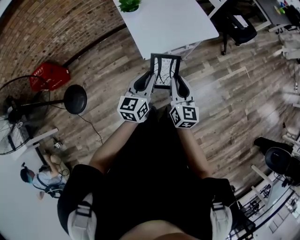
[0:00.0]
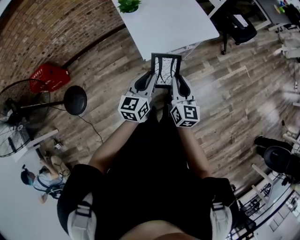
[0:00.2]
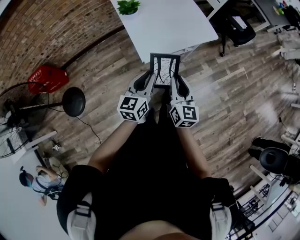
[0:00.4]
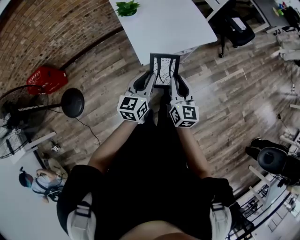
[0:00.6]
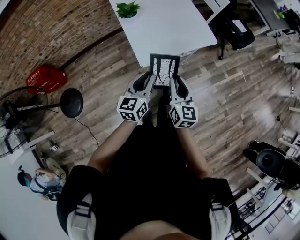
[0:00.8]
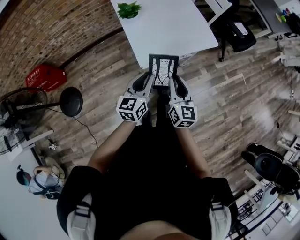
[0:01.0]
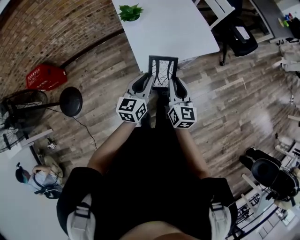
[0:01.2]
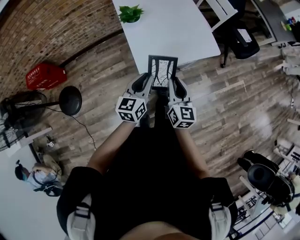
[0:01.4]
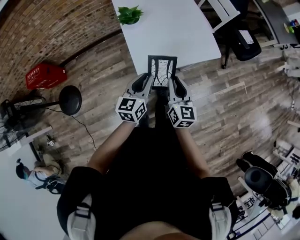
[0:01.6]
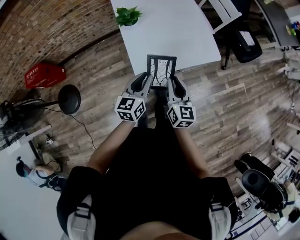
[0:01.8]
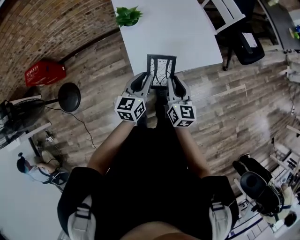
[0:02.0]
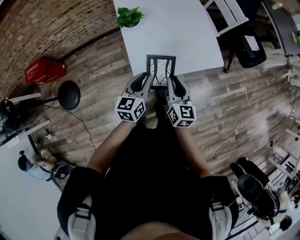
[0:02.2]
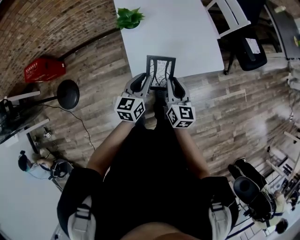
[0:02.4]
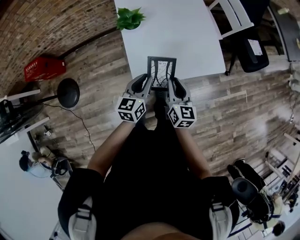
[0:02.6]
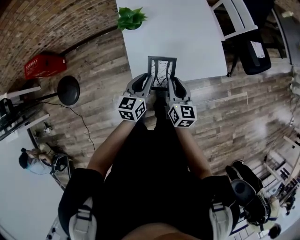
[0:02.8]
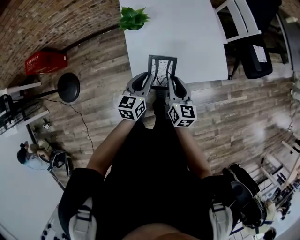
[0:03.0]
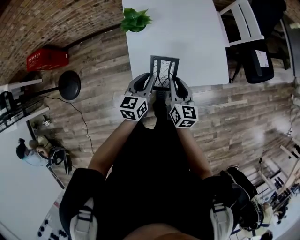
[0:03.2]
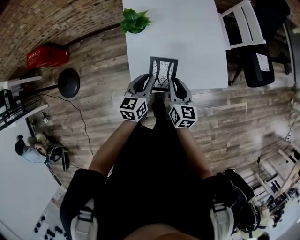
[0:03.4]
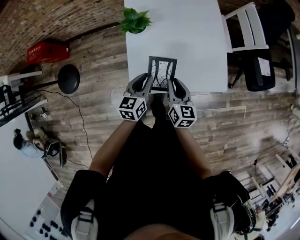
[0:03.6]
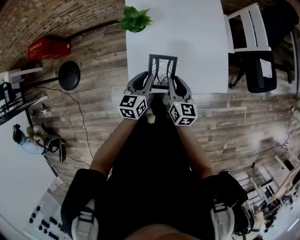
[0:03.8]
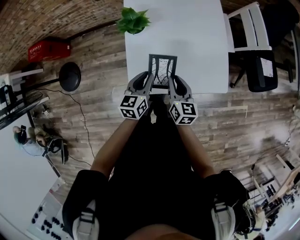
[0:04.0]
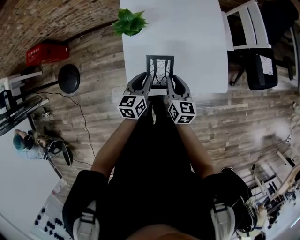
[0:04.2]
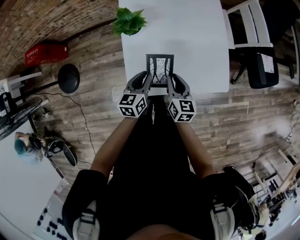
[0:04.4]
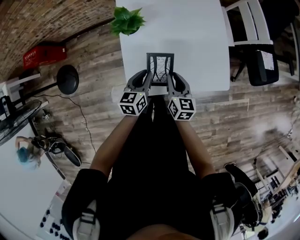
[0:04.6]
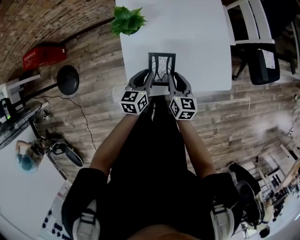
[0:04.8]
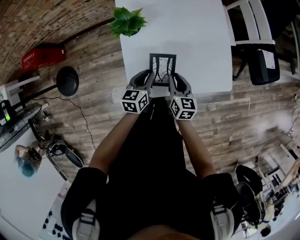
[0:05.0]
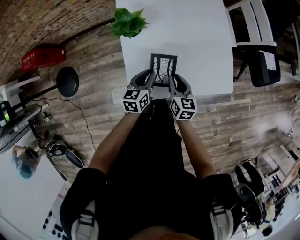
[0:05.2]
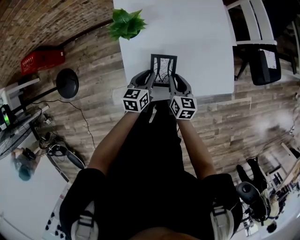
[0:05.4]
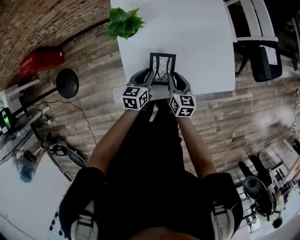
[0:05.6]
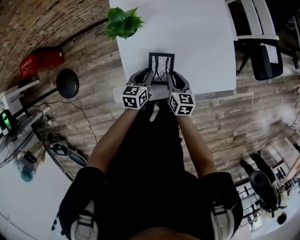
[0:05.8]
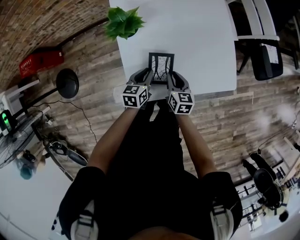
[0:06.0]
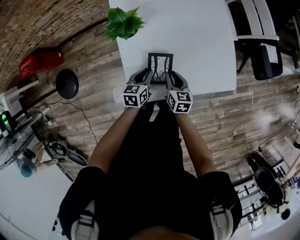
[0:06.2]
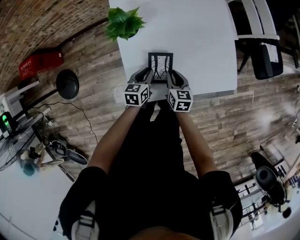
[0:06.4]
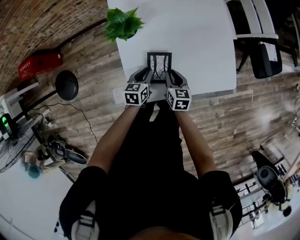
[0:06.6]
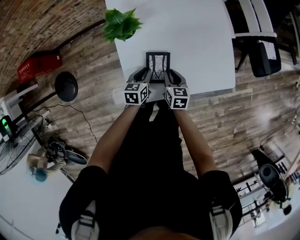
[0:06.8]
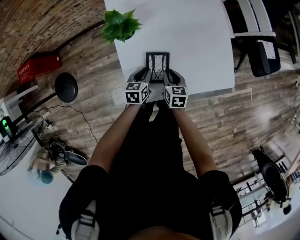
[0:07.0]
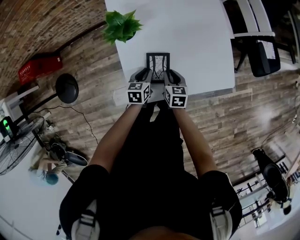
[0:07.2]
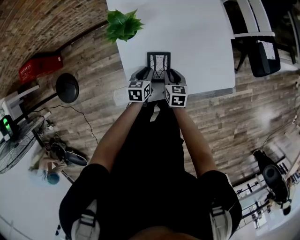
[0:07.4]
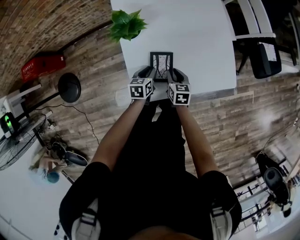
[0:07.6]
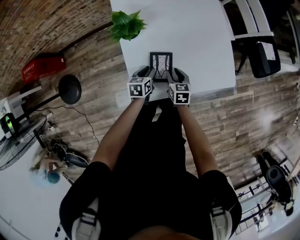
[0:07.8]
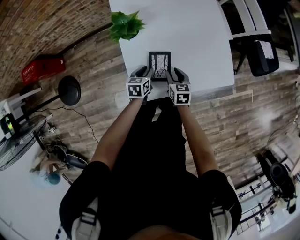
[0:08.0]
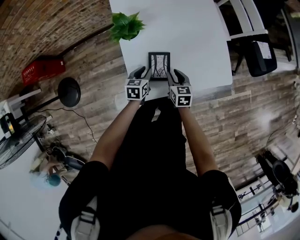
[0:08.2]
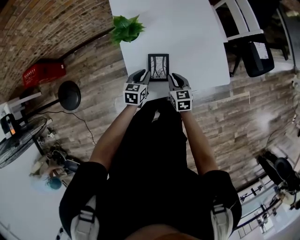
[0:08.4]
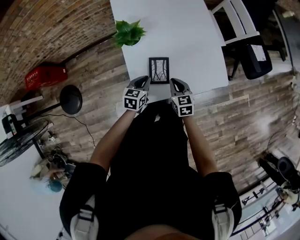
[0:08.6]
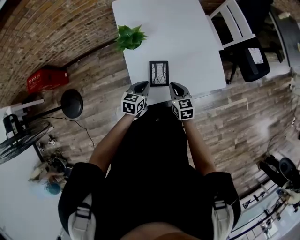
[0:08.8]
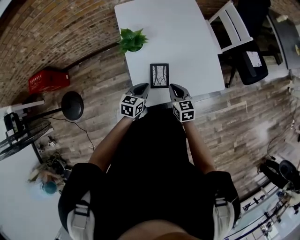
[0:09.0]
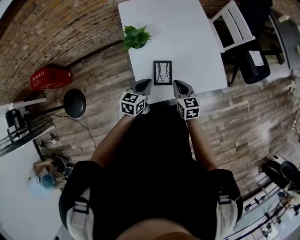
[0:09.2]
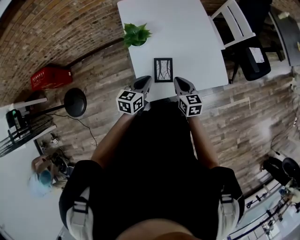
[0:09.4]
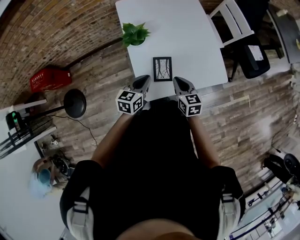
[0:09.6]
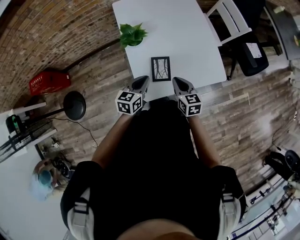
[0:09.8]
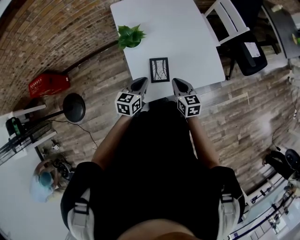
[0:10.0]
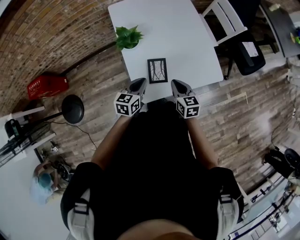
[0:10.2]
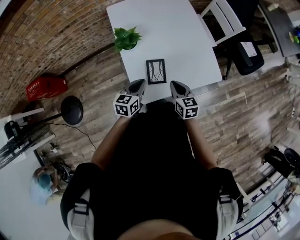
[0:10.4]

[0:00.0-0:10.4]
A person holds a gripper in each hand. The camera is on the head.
0:00.0 to 0:01.4: Both grippers travel together forward, roughly 10 cm.
0:01.4 to 0:03.0: Both grippers move forward and downward, some 20 cm.
0:03.0 to 0:04.4: Both grippers travel together forward and downward, about 10 cm.
0:04.4 to 0:06.0: The two grippers go some 10 cm downward.
0:06.0 to 0:07.4: The grippers stay close to where they were, moving slightly.
0:07.4 to 0:09.0: The two grippers go approximately 15 cm upward and backward.
0:09.0 to 0:10.4: The grippers stay close to where they were, moving slightly.

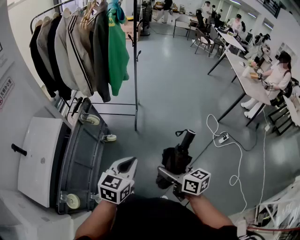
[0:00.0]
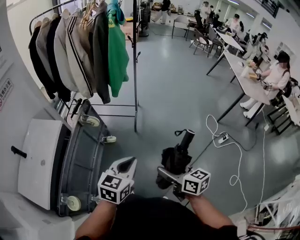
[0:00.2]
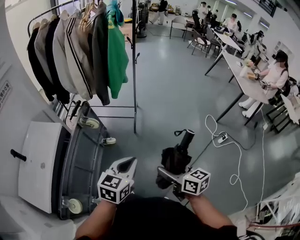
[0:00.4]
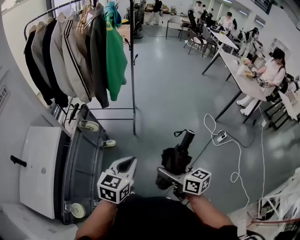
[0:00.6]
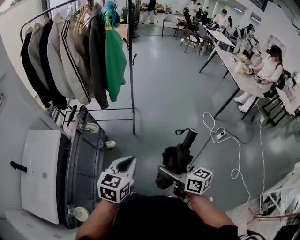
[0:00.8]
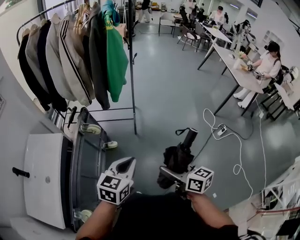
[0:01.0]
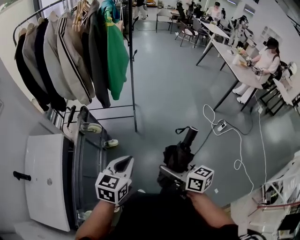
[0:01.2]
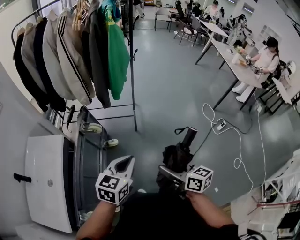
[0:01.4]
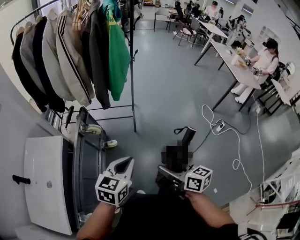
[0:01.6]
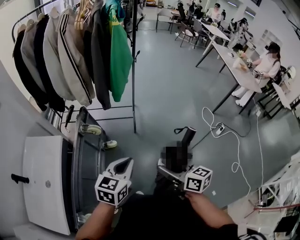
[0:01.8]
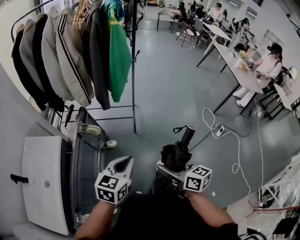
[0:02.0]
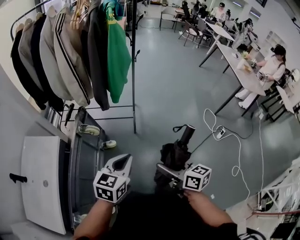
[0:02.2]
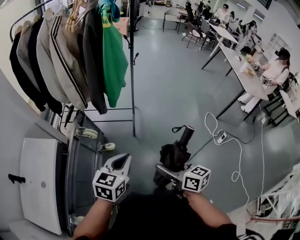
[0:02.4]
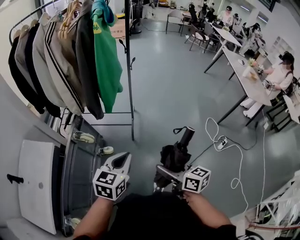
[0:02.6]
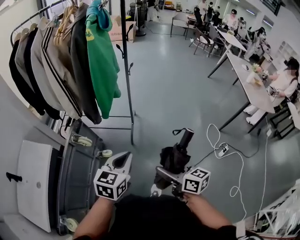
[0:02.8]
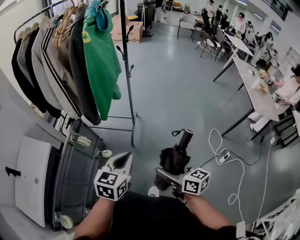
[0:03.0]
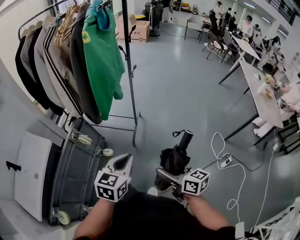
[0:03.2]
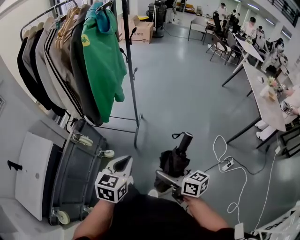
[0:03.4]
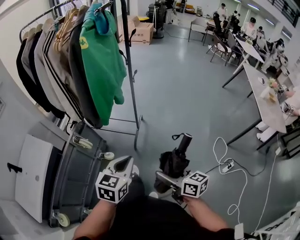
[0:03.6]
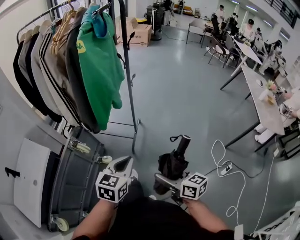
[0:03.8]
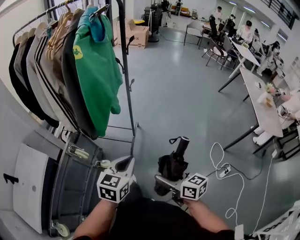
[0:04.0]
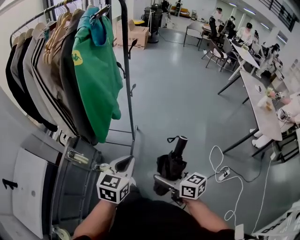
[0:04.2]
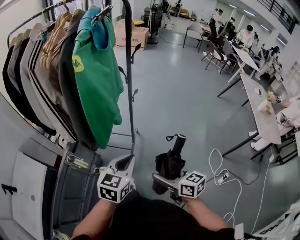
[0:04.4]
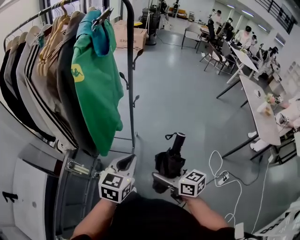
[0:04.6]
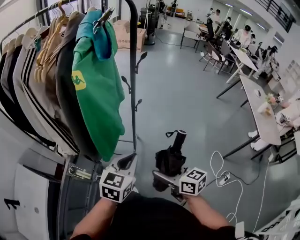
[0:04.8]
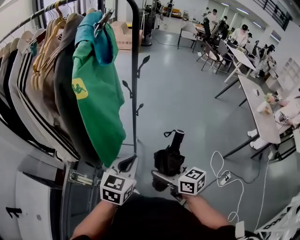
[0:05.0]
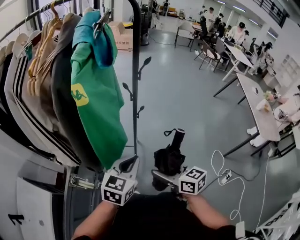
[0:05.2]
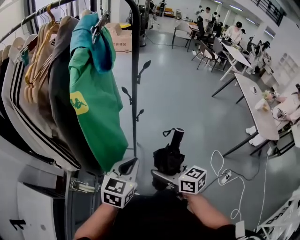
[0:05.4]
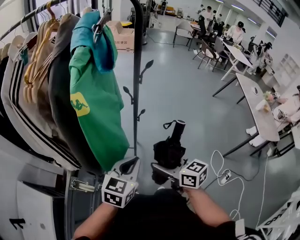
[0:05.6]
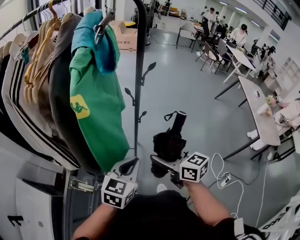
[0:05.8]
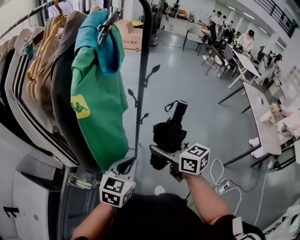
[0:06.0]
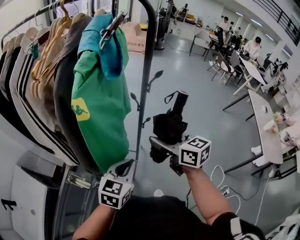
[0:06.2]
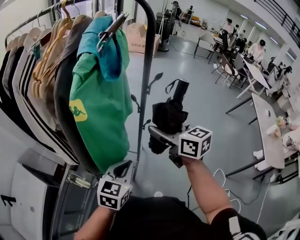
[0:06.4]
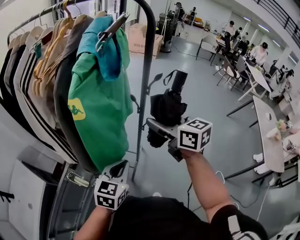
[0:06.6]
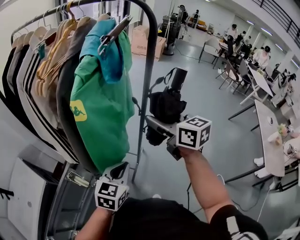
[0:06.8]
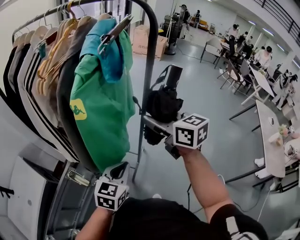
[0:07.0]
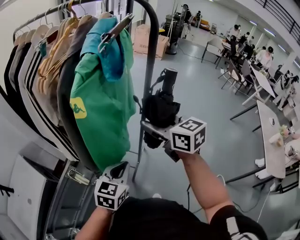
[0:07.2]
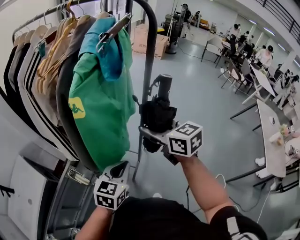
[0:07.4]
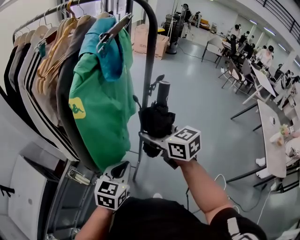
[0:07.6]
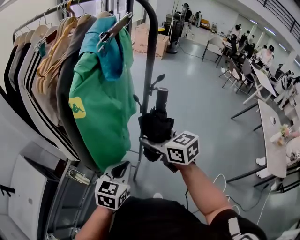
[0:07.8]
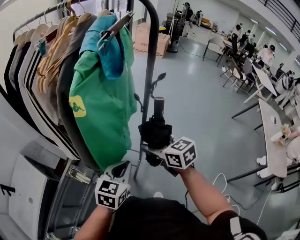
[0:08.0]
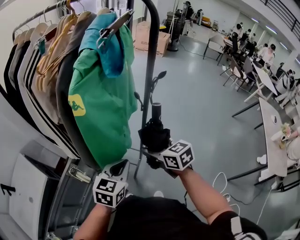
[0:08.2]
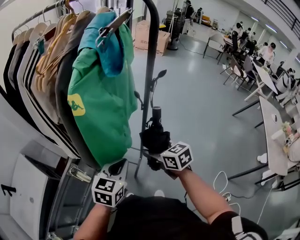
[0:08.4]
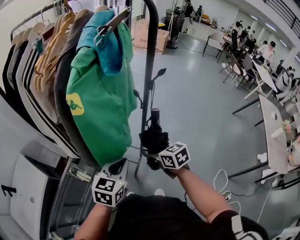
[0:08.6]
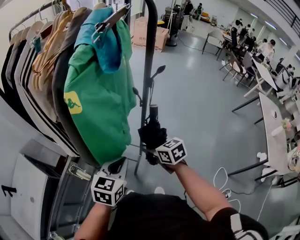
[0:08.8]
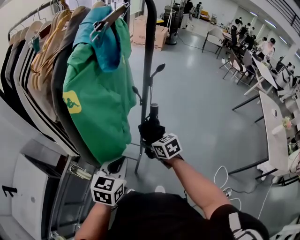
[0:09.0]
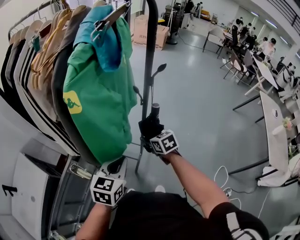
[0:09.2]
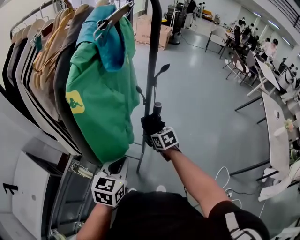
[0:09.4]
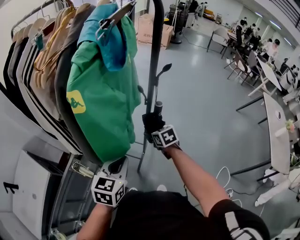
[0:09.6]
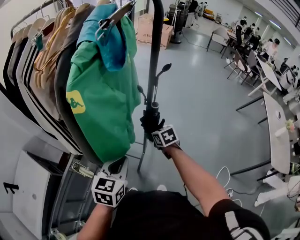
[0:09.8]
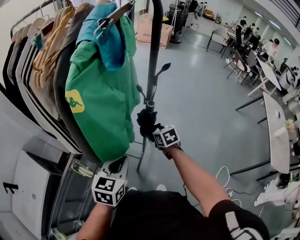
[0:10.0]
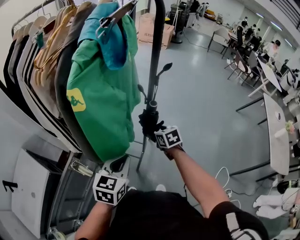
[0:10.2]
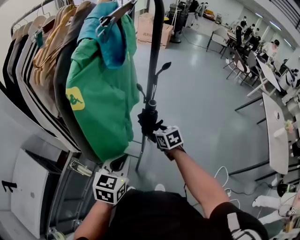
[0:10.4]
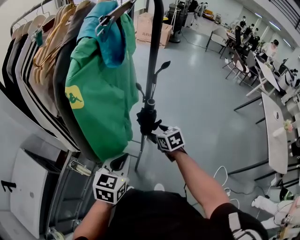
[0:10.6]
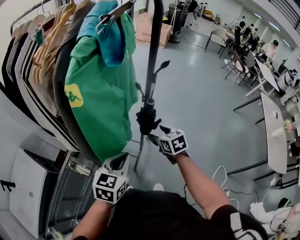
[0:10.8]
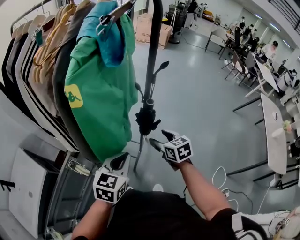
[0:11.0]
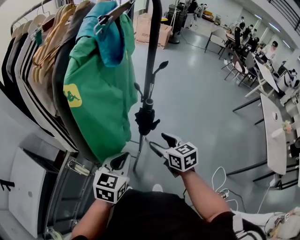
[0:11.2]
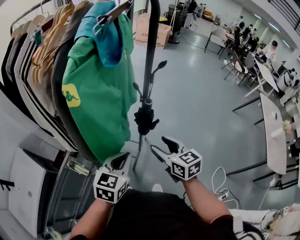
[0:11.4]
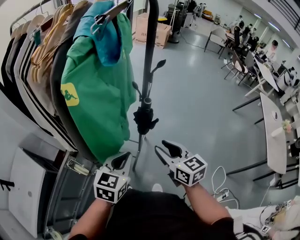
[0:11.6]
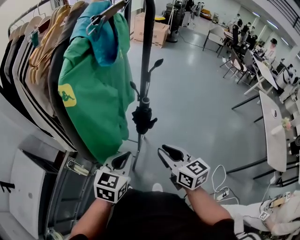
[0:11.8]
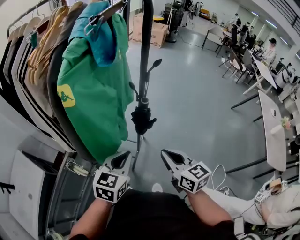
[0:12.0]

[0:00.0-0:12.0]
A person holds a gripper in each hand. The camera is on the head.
0:00.0 to 0:01.6: Both grippers travel together to the left and forward, roughly 15 cm.
0:01.6 to 0:03.0: Both grippers move to the right and forward, approximately 25 cm.
0:03.0 to 0:04.4: The two grippers go some 20 cm forward.
0:04.4 to 0:06.0: The left gripper heads forward, covering some 15 cm. The right gripper is displaced forward by about 25 cm.
0:06.0 to 0:07.6: The right gripper travels forward and upward by about 10 cm.
0:07.6 to 0:09.0: The right gripper shifts approximately 20 cm downward, and changes its angle by about 20 degrees.
0:09.0 to 0:10.4: The right gripper shifts by roughly 5 cm.
0:10.4 to 0:12.0: The right gripper goes about 20 cm backward and upward, rotates some 30 degrees, and closes up.

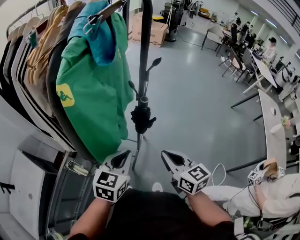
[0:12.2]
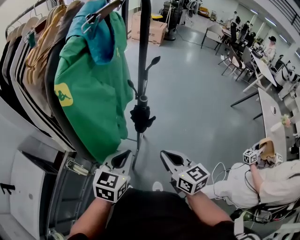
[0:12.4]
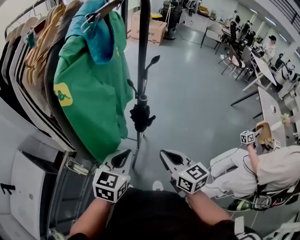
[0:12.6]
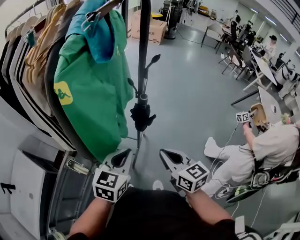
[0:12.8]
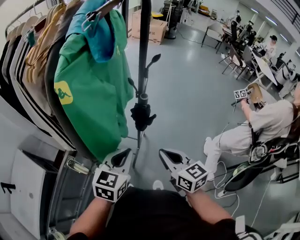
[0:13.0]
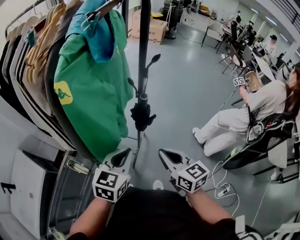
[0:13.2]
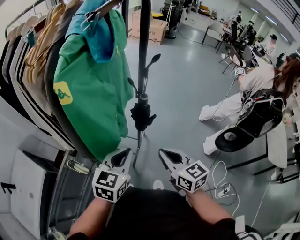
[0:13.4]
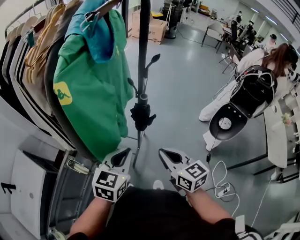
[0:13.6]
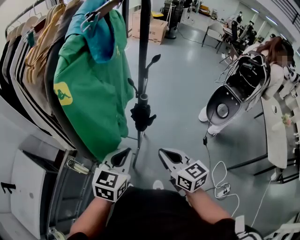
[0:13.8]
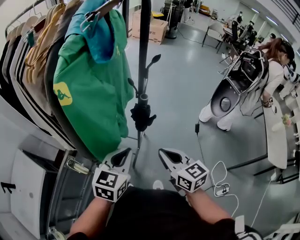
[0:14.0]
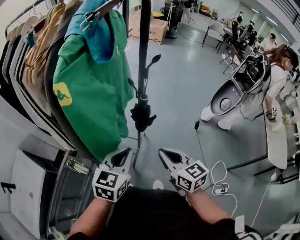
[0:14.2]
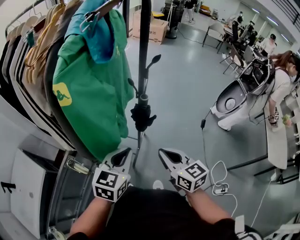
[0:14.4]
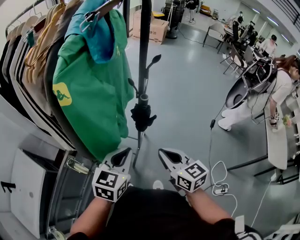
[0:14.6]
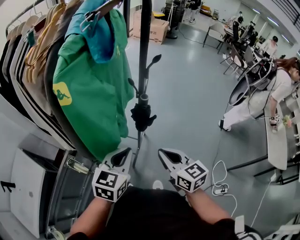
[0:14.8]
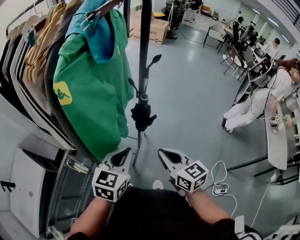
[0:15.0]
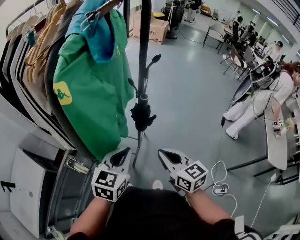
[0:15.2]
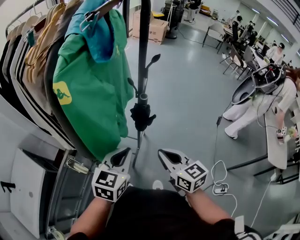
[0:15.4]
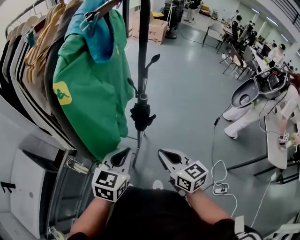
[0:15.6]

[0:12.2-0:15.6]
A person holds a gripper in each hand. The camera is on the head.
0:12.2 to 0:13.8: Both grippers stay put.
0:13.8 to 0:15.6: Neither gripper changes place.
